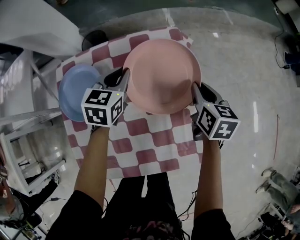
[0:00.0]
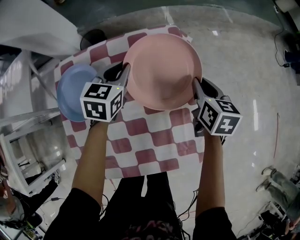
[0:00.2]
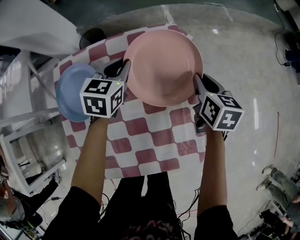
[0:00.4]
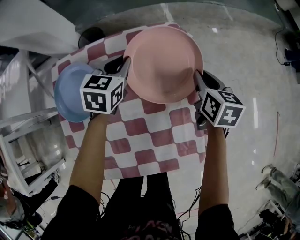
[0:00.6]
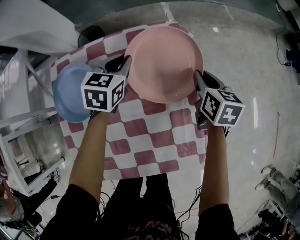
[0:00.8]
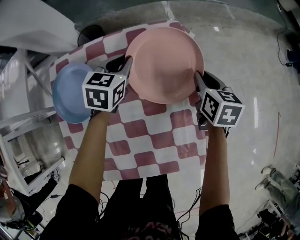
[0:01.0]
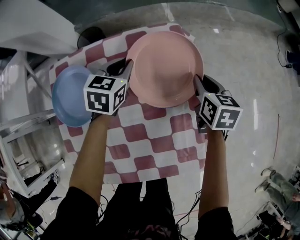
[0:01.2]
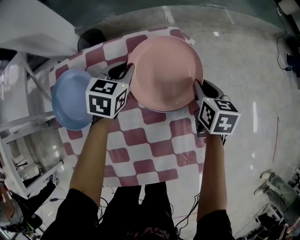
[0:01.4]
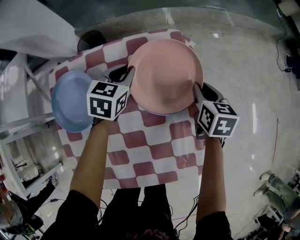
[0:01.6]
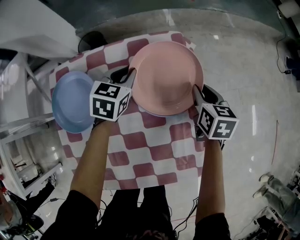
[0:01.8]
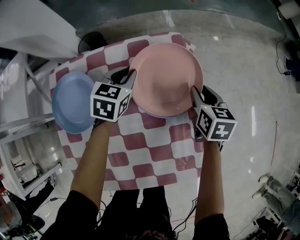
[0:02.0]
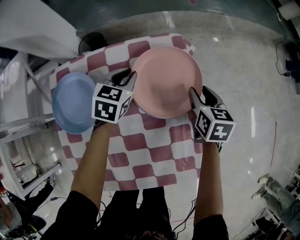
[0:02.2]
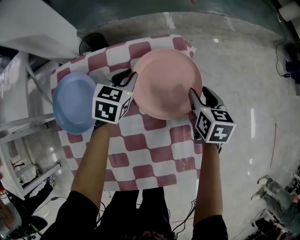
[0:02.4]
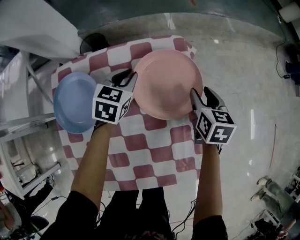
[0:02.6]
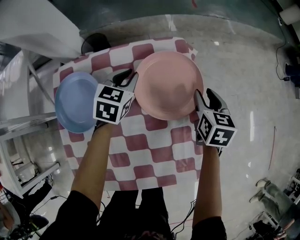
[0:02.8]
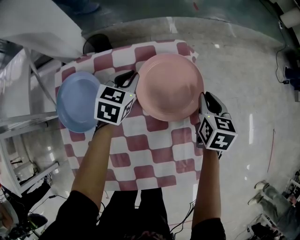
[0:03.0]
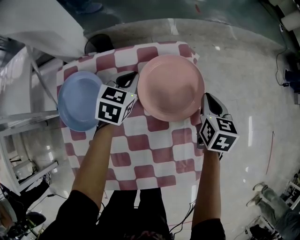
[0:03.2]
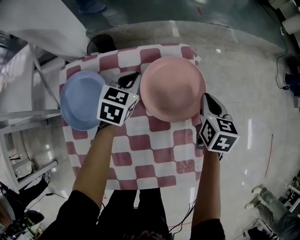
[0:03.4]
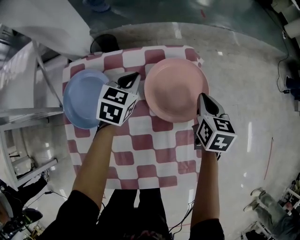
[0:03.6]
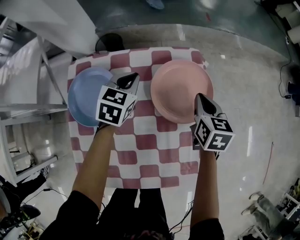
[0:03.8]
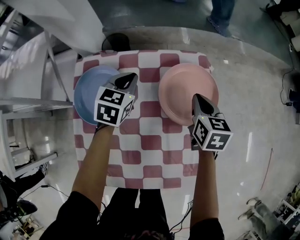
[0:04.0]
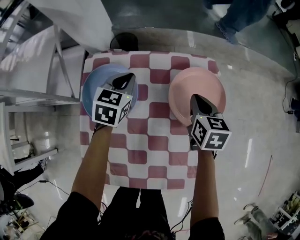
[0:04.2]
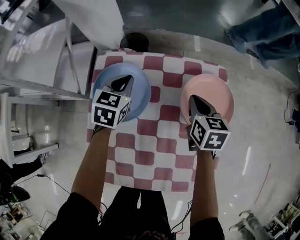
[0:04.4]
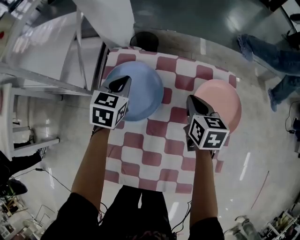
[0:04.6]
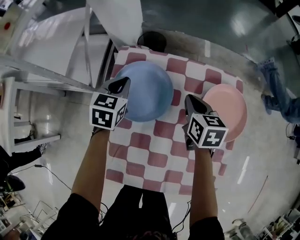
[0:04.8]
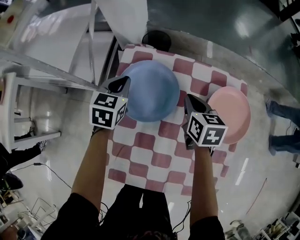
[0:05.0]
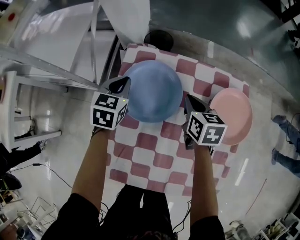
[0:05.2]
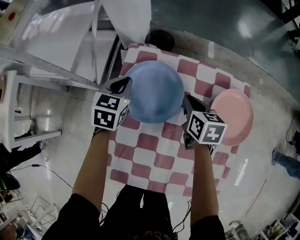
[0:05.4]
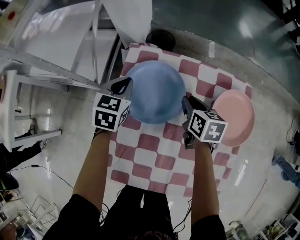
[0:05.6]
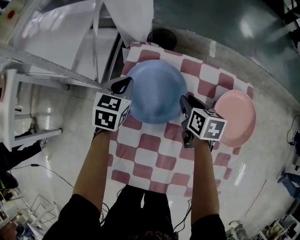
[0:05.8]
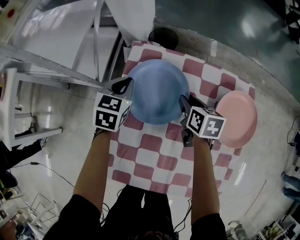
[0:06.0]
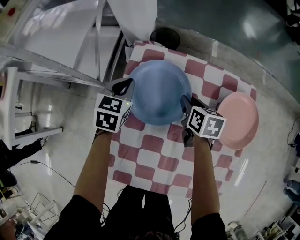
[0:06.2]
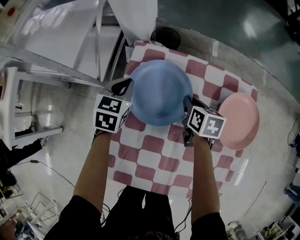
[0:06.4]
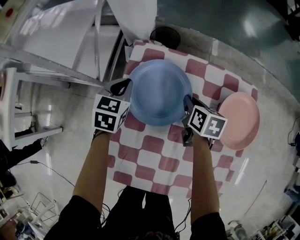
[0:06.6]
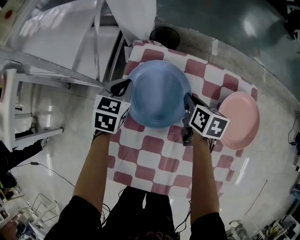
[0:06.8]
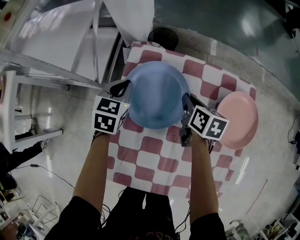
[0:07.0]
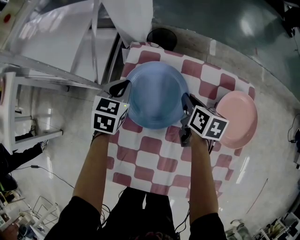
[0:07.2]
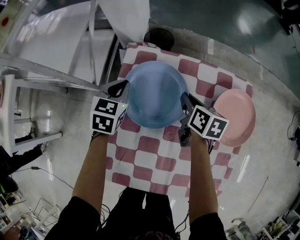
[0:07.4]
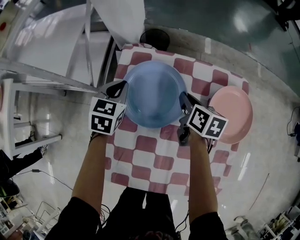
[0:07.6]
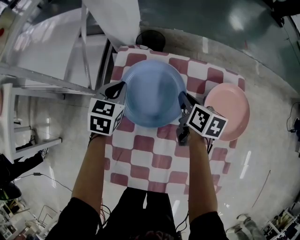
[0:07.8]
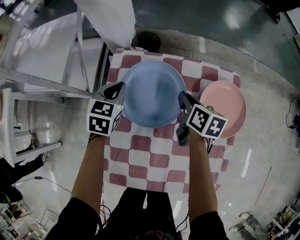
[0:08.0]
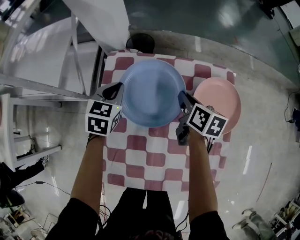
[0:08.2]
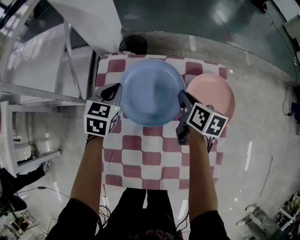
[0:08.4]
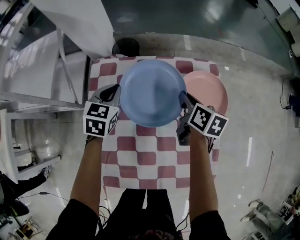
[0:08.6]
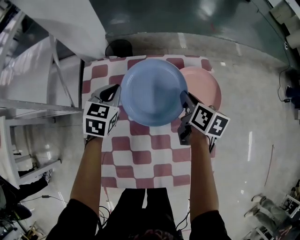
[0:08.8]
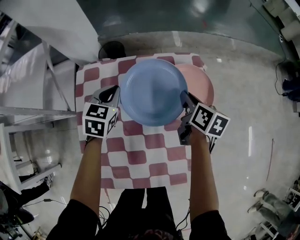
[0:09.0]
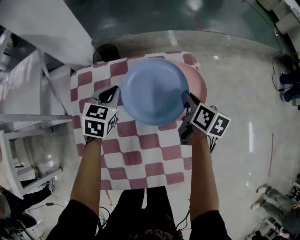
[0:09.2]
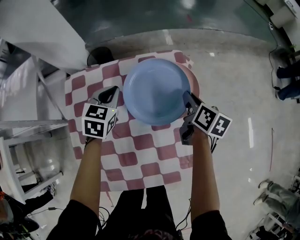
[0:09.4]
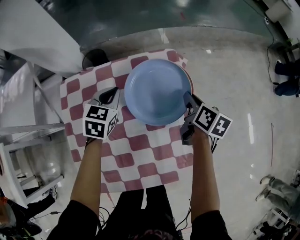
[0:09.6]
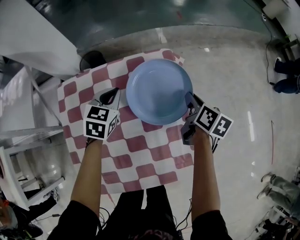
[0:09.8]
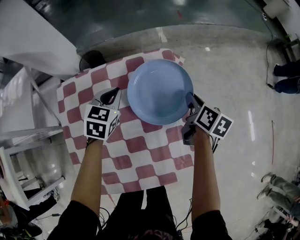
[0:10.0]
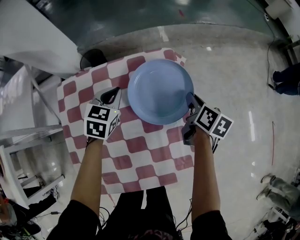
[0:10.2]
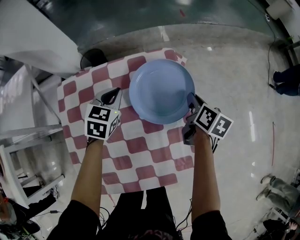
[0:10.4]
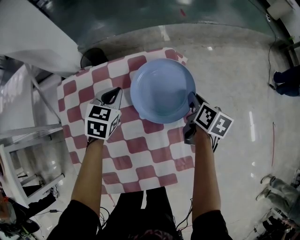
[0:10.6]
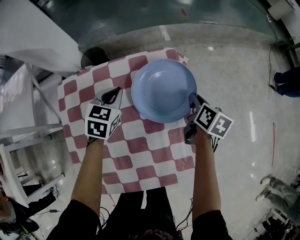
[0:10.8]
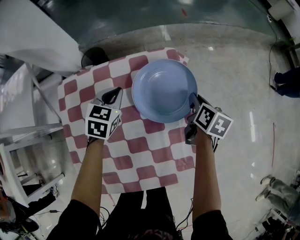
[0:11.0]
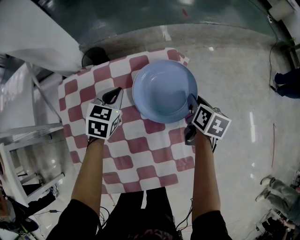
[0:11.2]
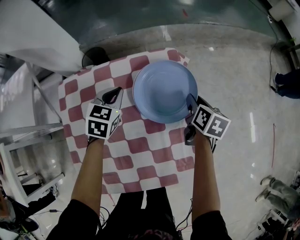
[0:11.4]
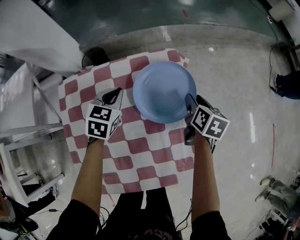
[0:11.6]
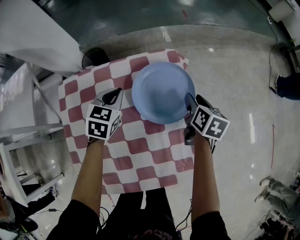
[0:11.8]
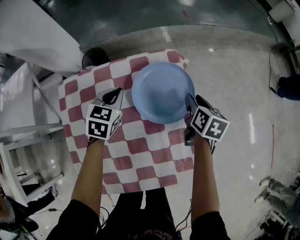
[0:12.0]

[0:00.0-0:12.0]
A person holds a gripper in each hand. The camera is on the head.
0.0 to 1.6 s: The grippers both shift downward and forward by approximately 10 cm.
1.6 to 3.0 s: The right gripper opens and closes again.
3.0 to 4.4 s: Both grippers travel together to the left, some 20 cm. The right gripper swivels approximately 20 degrees.
4.4 to 6.0 s: The right gripper heads to the left and downward, covering approximately 20 cm, and opens its fingers; the left gripper travels to the left by about 15 cm.
6.0 to 7.6 s: The right gripper closes up.
7.6 to 9.0 s: Both grippers move to the right, about 20 cm. The right gripper turns by approximately 20 degrees.
9.0 to 10.4 s: The grippers both shift to the right by about 15 cm.
10.4 to 12.0 s: The right gripper opens its fingers.

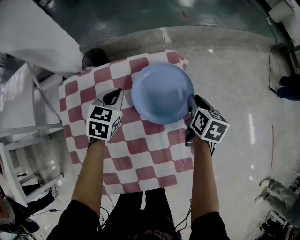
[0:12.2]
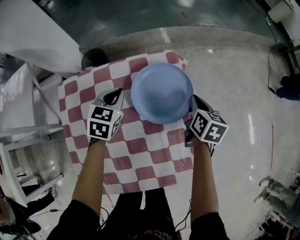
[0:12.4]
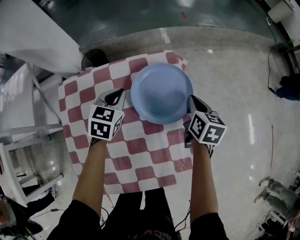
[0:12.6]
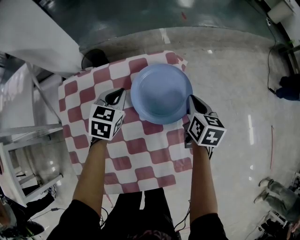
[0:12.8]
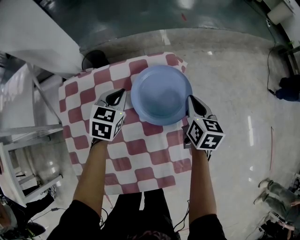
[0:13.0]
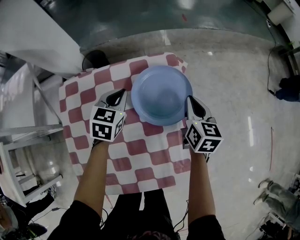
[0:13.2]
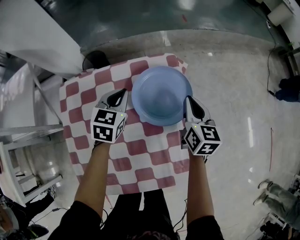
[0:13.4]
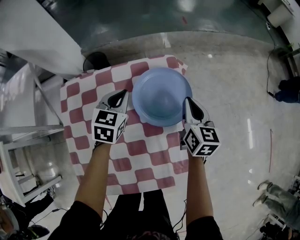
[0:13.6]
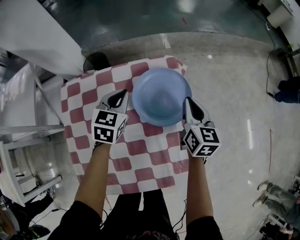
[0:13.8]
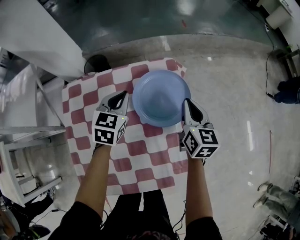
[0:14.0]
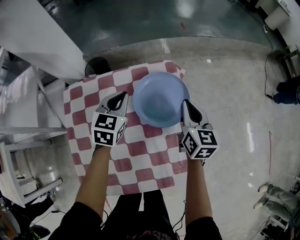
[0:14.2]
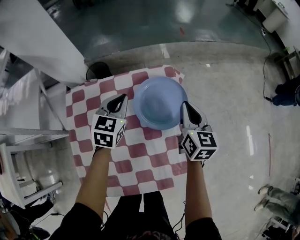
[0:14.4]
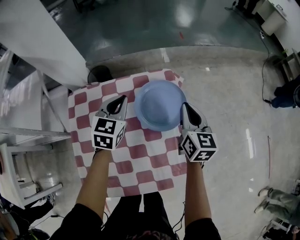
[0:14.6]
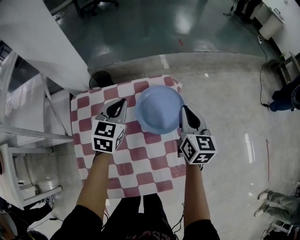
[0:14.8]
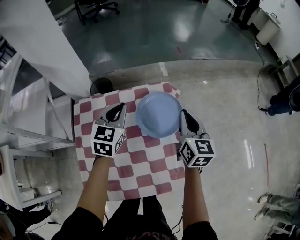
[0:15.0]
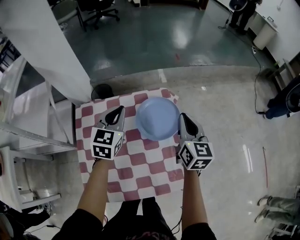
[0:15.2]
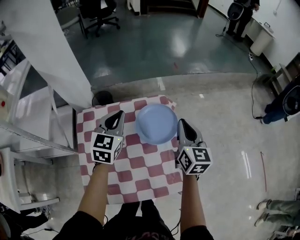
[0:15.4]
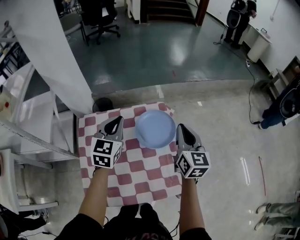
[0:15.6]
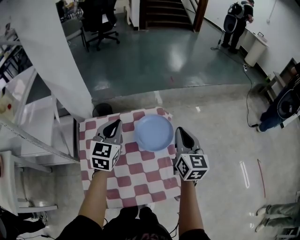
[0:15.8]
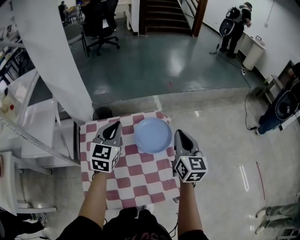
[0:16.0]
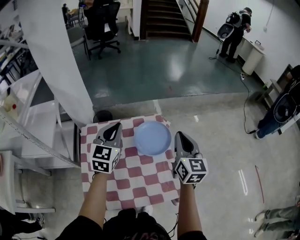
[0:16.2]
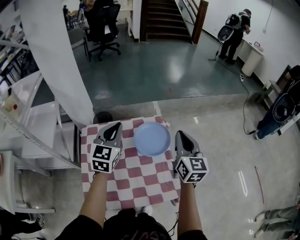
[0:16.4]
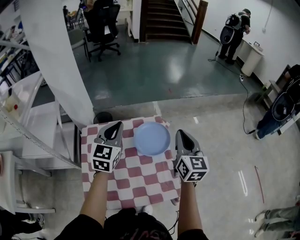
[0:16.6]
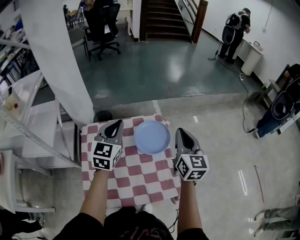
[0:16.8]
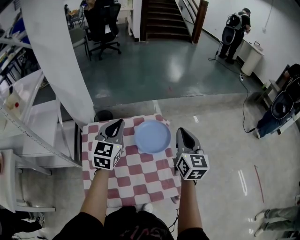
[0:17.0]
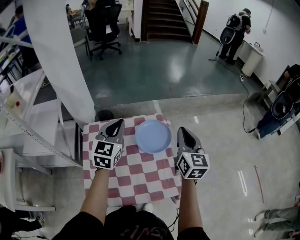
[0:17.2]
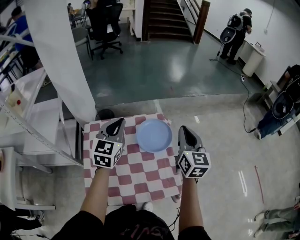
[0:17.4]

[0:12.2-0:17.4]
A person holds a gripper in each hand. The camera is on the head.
12.2 to 14.0 s: The right gripper travels upward by about 5 cm, turns by roughly 20 degrees, and closes up.
14.0 to 15.6 s: Both grippers travel together upward, about 20 cm.
15.6 to 17.4 s: Both grippers travel together upward and backward, approximately 10 cm.

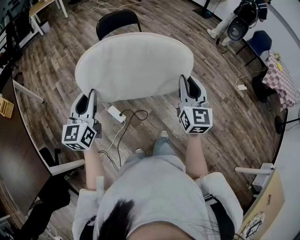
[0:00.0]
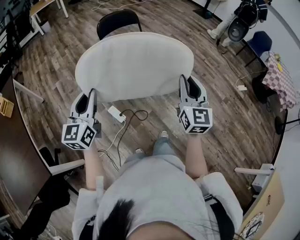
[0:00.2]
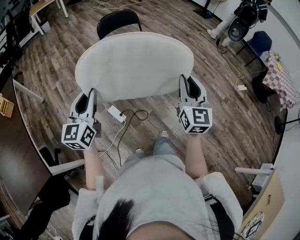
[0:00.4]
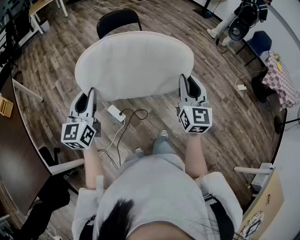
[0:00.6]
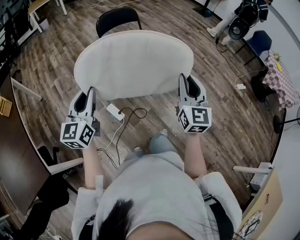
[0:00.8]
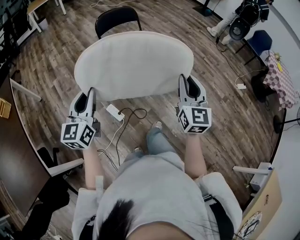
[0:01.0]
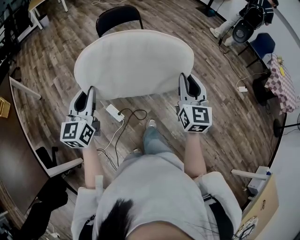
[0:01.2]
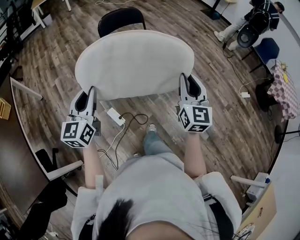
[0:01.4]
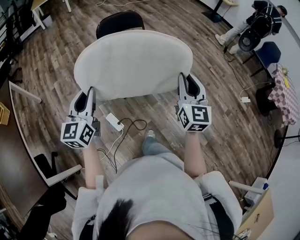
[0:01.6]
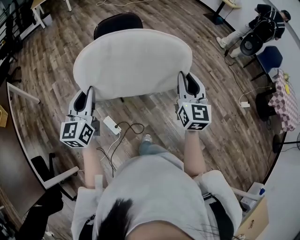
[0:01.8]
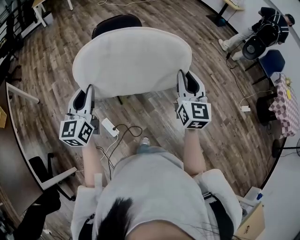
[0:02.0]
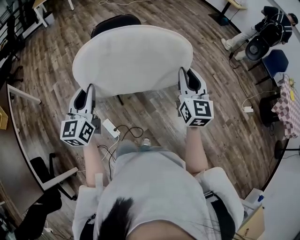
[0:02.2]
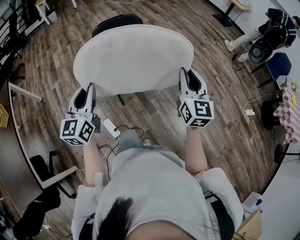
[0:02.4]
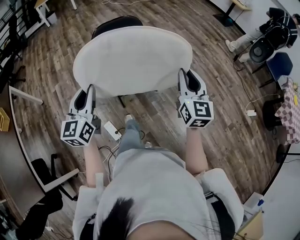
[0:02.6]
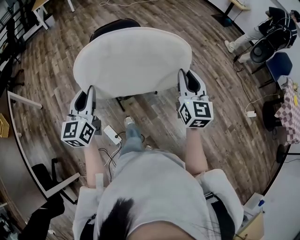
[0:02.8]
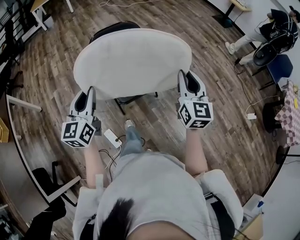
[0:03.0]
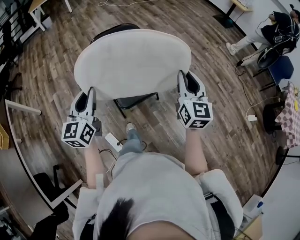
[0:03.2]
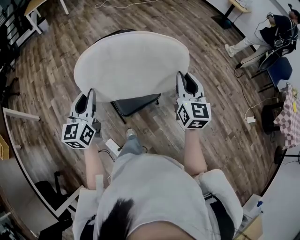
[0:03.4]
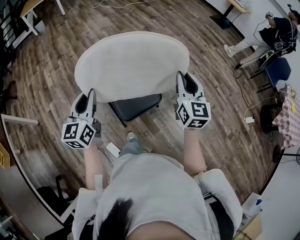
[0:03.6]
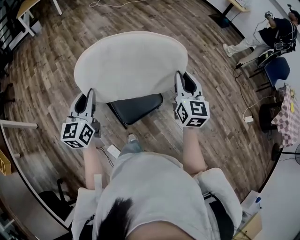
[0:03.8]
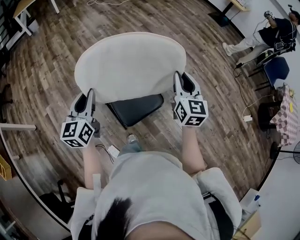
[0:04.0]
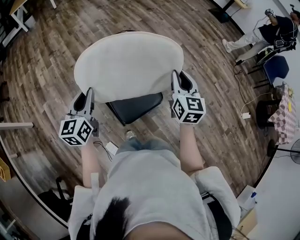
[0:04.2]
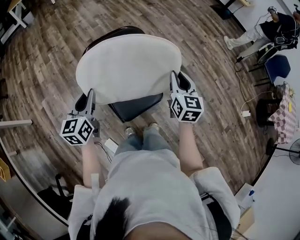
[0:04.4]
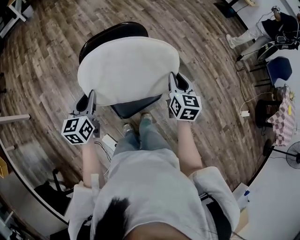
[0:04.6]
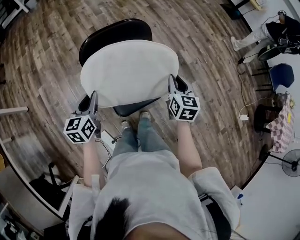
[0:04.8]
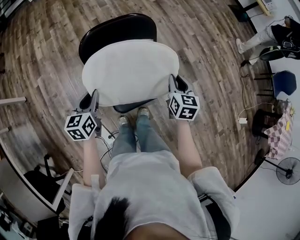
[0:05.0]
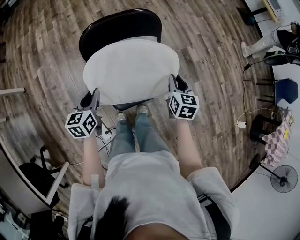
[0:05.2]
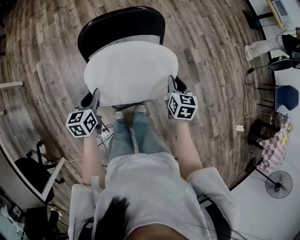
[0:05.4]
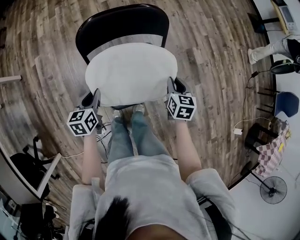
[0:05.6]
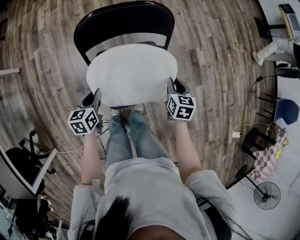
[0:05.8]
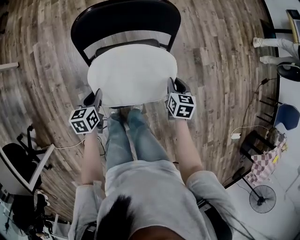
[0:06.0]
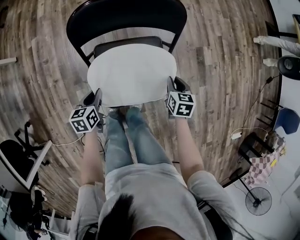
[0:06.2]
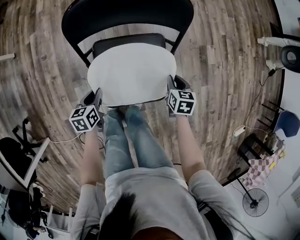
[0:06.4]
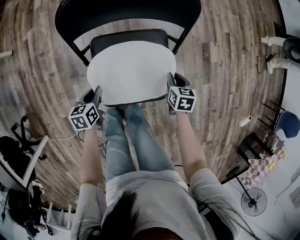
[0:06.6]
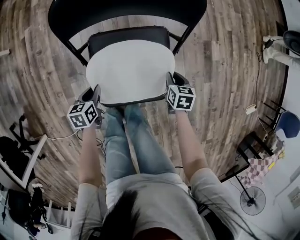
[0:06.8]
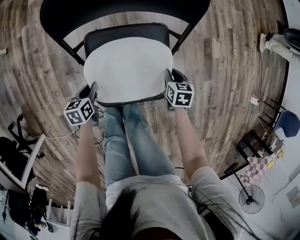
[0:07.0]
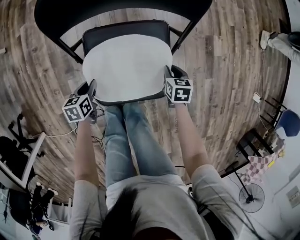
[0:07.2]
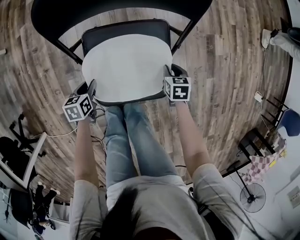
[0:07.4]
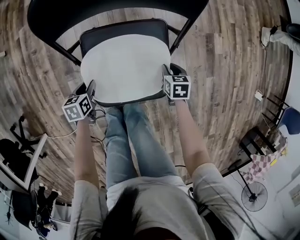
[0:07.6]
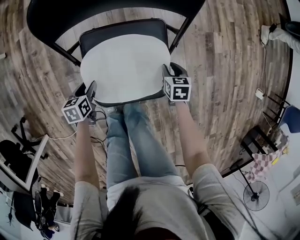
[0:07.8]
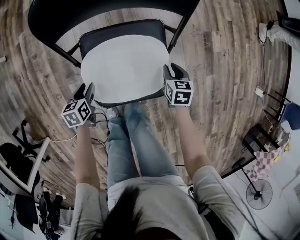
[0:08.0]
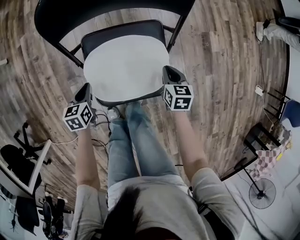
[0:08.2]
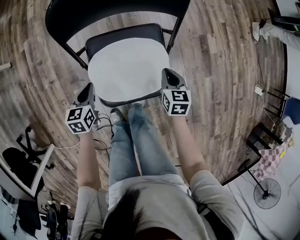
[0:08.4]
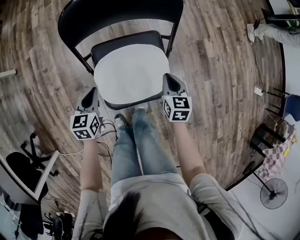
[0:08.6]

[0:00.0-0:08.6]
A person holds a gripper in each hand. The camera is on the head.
0.0 to 1.4 s: The two grippers go roughly 10 cm forward.
1.4 to 2.8 s: The two grippers go some 25 cm forward.
2.8 to 4.4 s: The left gripper shifts approximately 30 cm forward and downward; the right gripper is displaced forward by roughly 30 cm.
4.4 to 5.8 s: Both grippers travel together downward, roughly 25 cm. The right gripper swivels about 30 degrees. The left gripper changes its angle by approximately 30 degrees.
5.8 to 7.2 s: The two grippers go about 25 cm downward.
7.2 to 8.6 s: The grippers both shift upward by approximately 15 cm. The left gripper turns by about 30 degrees, and opens, then closes once more, while the right gripper turns by approximately 20 degrees.
